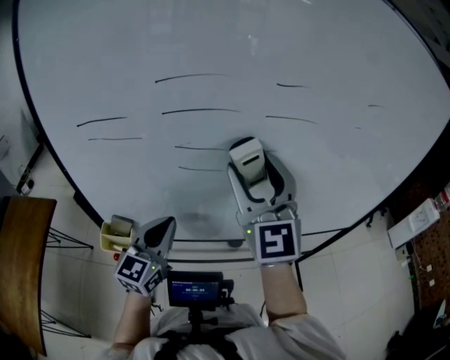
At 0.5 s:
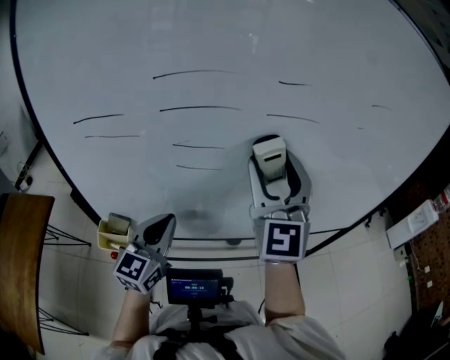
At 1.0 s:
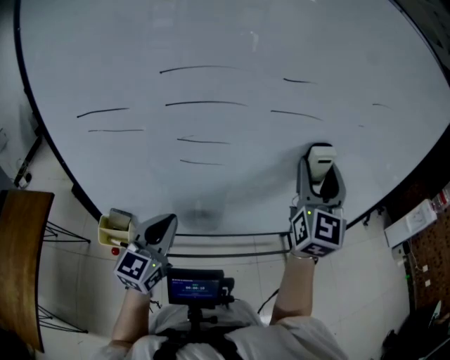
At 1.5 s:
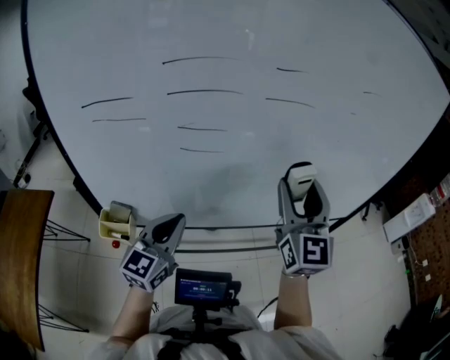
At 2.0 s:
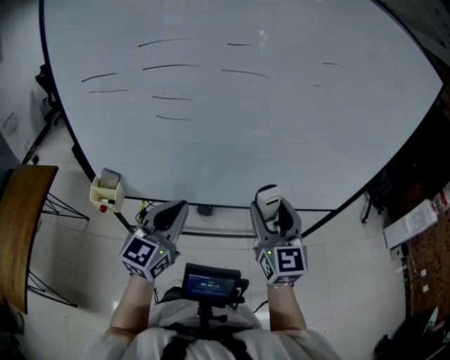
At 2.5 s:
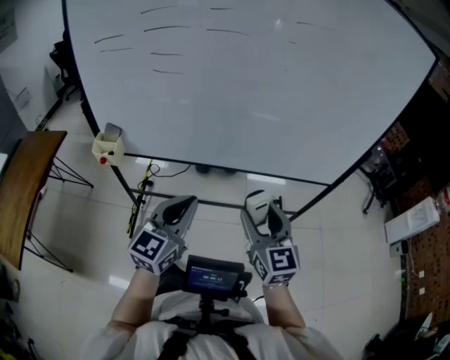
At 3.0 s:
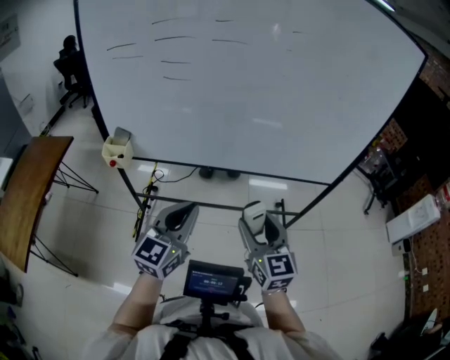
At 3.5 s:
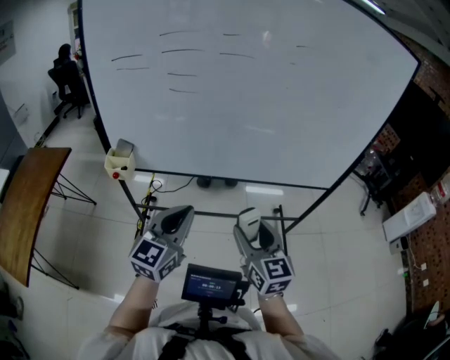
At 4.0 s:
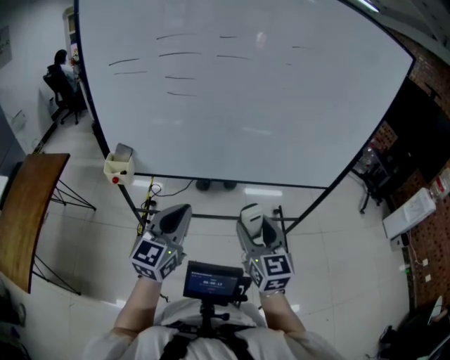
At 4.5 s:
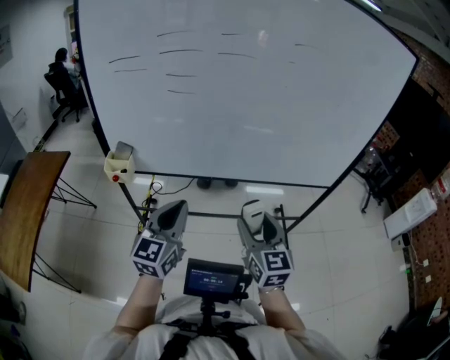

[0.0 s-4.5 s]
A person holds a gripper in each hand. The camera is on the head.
0.0 to 2.0 s: The left gripper moves to the right and backward, roughly 15 cm, while the right gripper goes about 25 cm to the right, downward and backward, and changes its angle by about 20 degrees.
2.0 to 4.5 s: The right gripper heads backward and downward, covering approximately 15 cm; the left gripper moves backward, some 15 cm.

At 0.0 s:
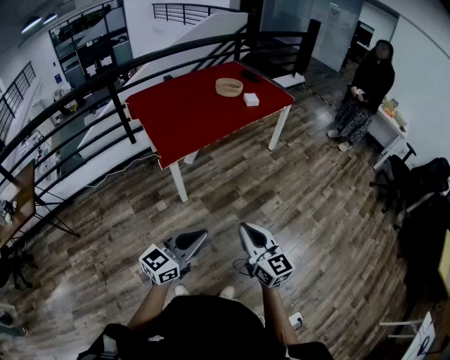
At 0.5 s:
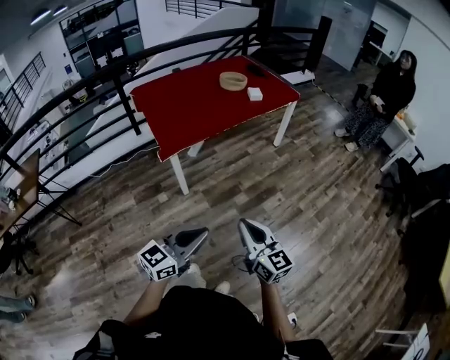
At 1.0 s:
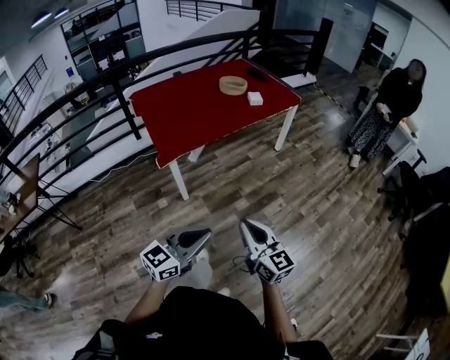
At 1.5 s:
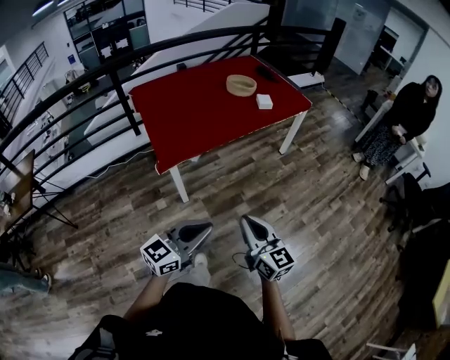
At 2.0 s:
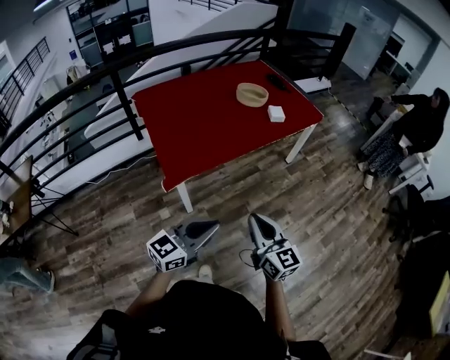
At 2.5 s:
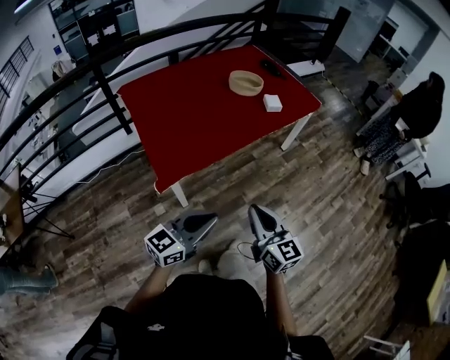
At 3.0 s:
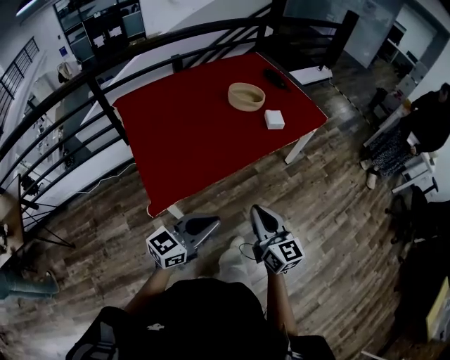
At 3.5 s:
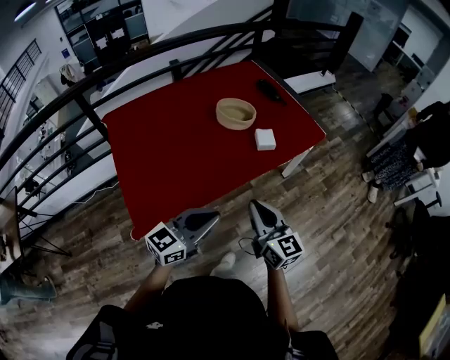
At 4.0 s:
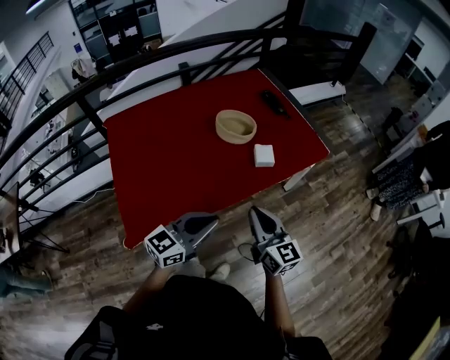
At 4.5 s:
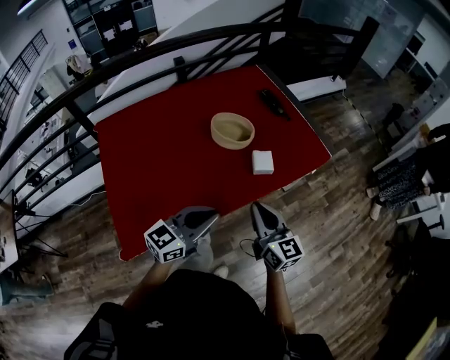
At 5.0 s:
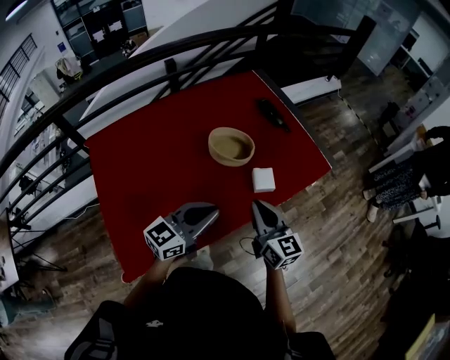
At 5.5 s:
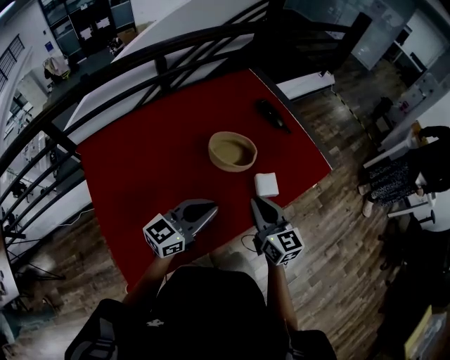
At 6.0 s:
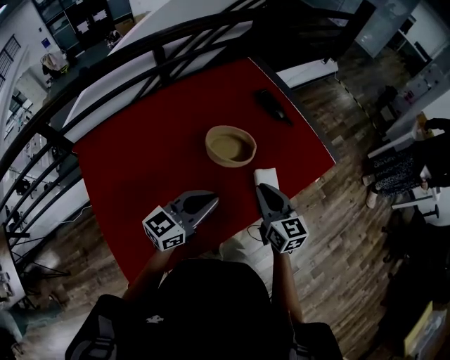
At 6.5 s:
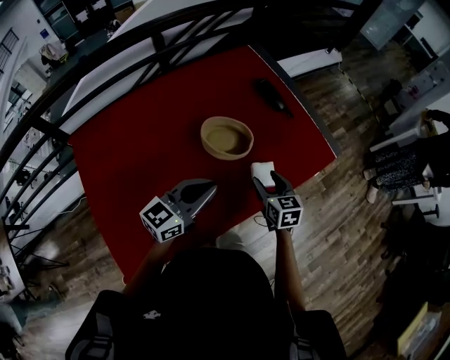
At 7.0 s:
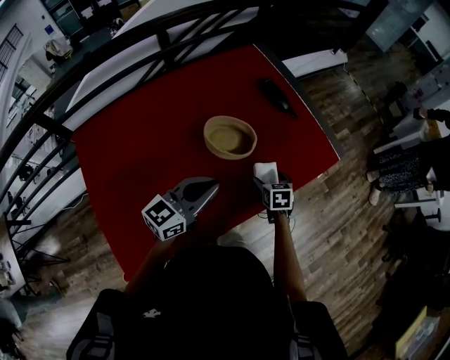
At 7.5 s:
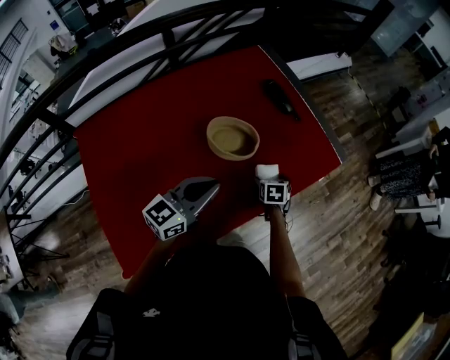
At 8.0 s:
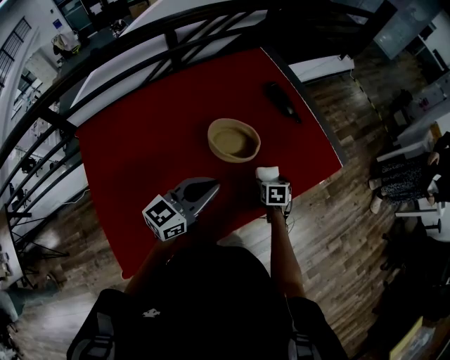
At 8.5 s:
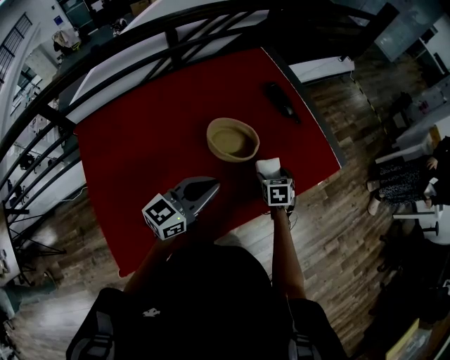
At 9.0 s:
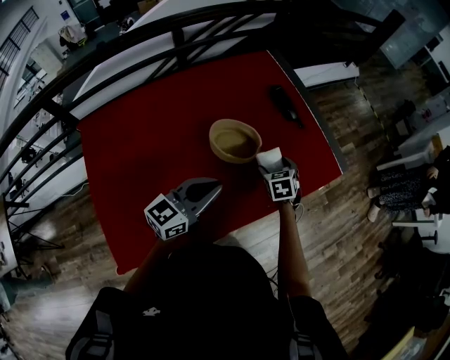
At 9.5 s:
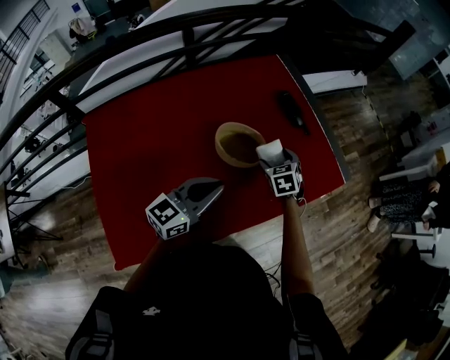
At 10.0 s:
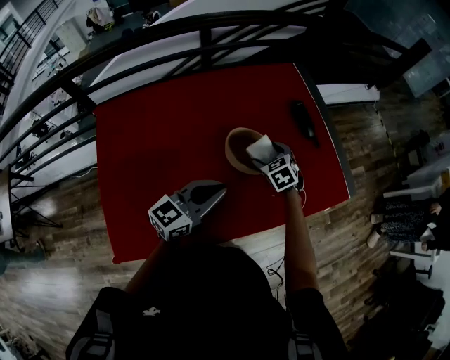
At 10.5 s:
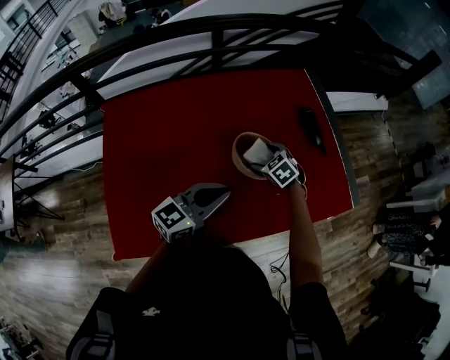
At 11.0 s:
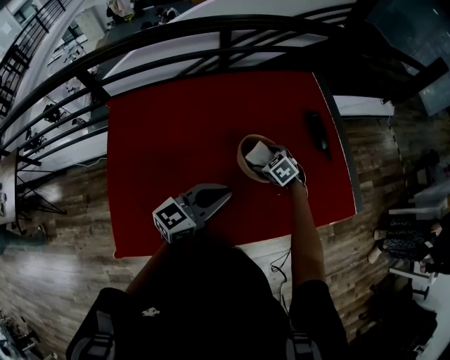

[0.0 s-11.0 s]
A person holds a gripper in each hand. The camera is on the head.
0.0 to 2.0 s: Both grippers move forward, roughly 30 cm.
2.0 to 3.5 s: The two grippers go about 35 cm forward.
3.5 to 5.5 s: The grippers both shift forward by about 30 cm.
5.5 to 7.5 s: The right gripper shifts approximately 30 cm downward and forward, angles its fingers downward, by some 50 degrees, and opens. The left gripper goes approximately 10 cm forward.
7.5 to 9.0 s: The right gripper travels upward by roughly 10 cm, and swivels about 20 degrees.
9.0 to 11.0 s: The right gripper ends up about 15 cm from where it was, and rotates some 40 degrees.

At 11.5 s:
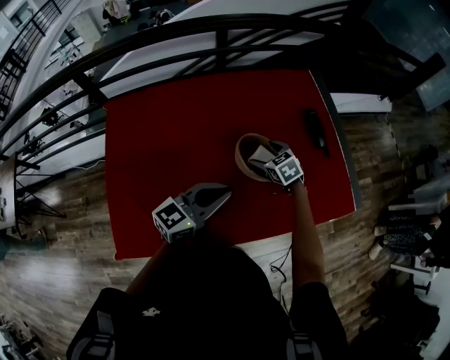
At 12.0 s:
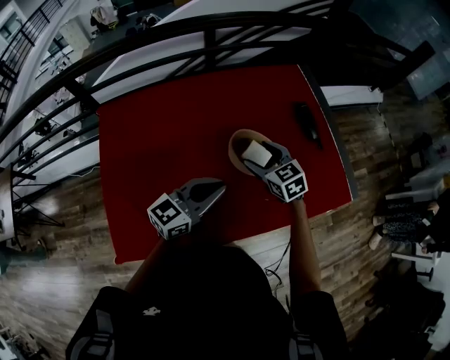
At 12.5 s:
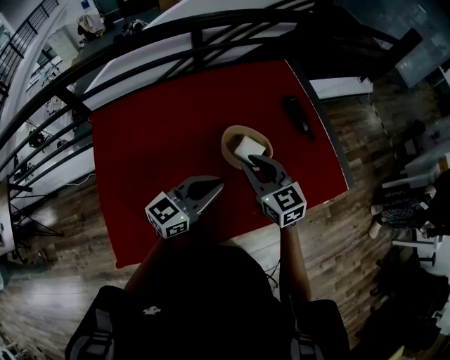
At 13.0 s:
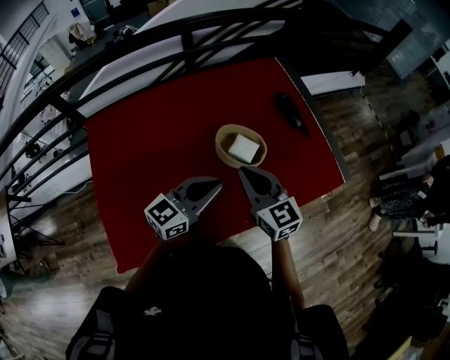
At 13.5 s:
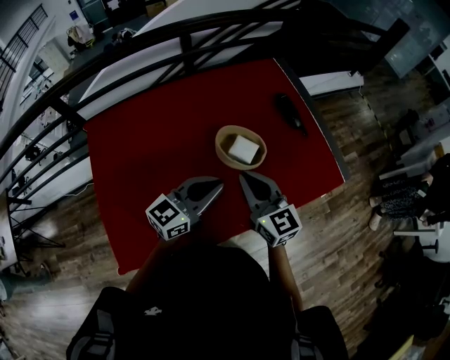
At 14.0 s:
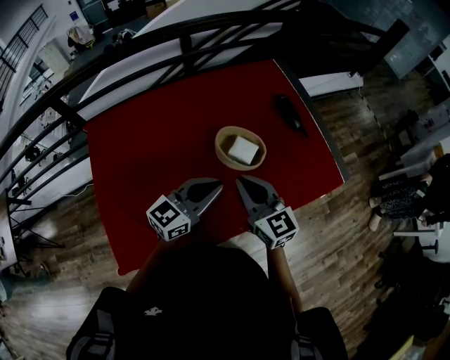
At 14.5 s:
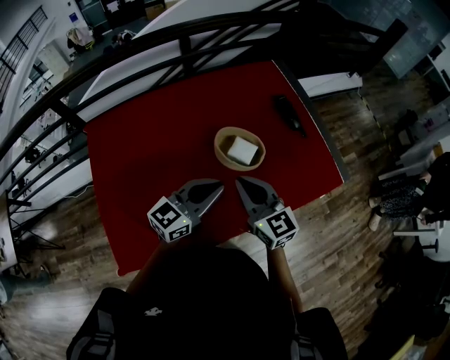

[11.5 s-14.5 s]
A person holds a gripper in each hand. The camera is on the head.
11.5 to 13.0 s: The right gripper shifts approximately 25 cm upward and backward, tips its fingers upward by approximately 40 degrees, and closes.
13.0 to 14.5 s: The grippers make only small movements.

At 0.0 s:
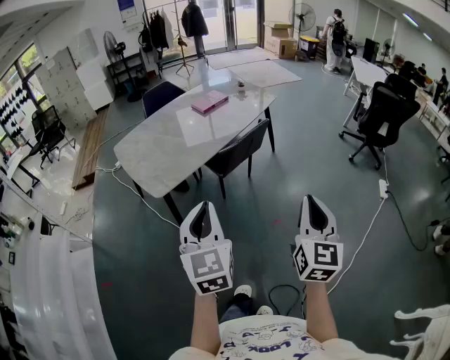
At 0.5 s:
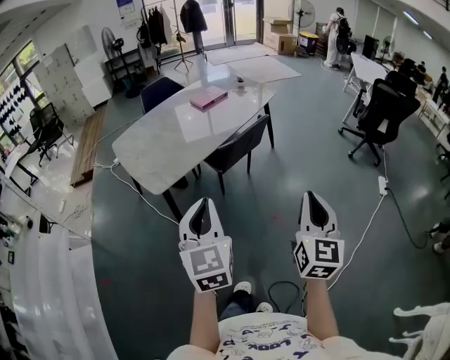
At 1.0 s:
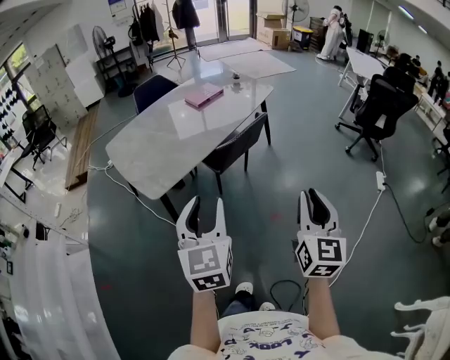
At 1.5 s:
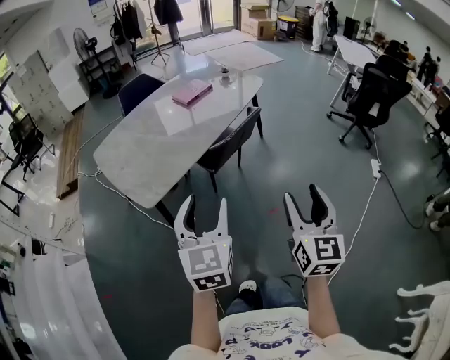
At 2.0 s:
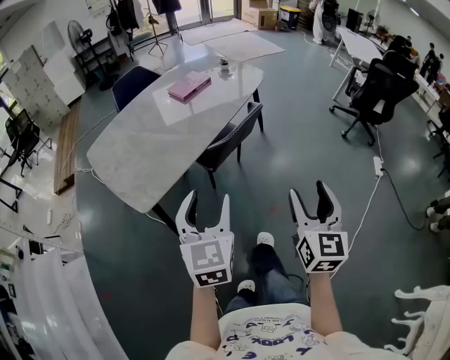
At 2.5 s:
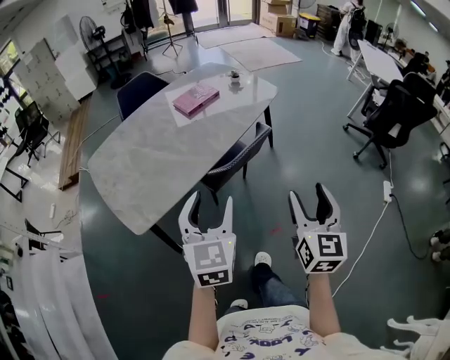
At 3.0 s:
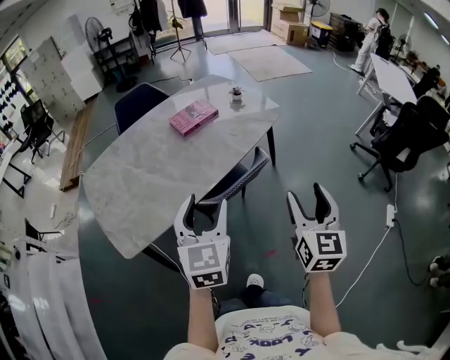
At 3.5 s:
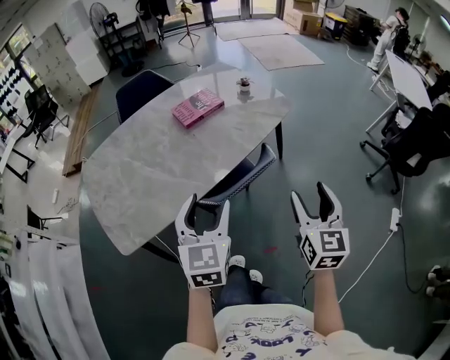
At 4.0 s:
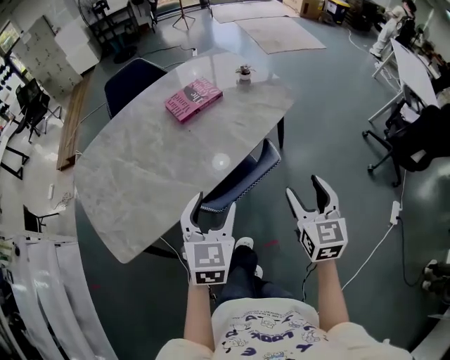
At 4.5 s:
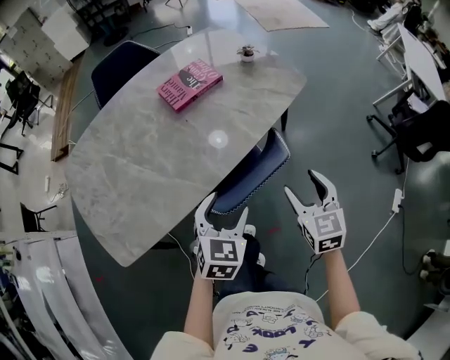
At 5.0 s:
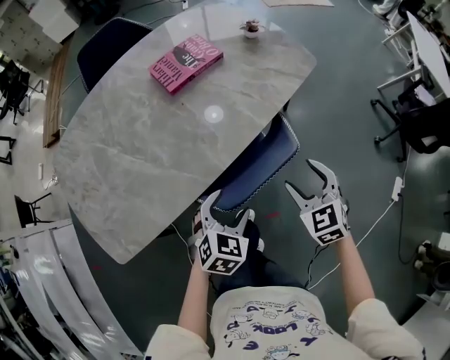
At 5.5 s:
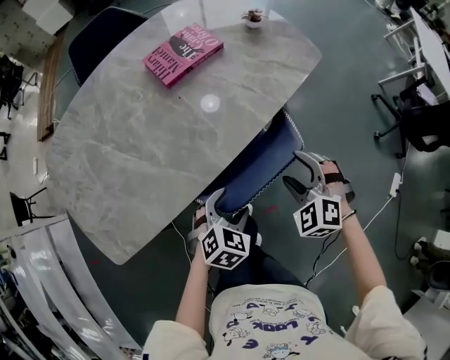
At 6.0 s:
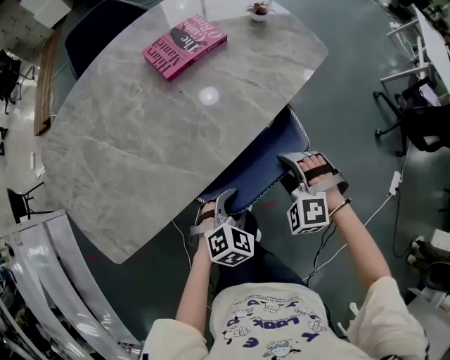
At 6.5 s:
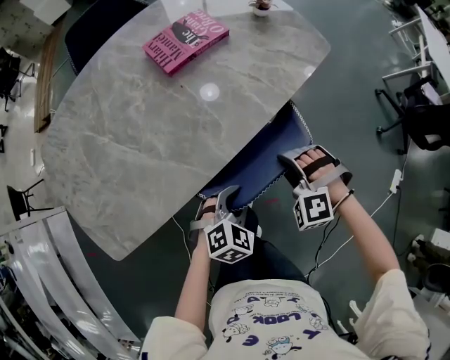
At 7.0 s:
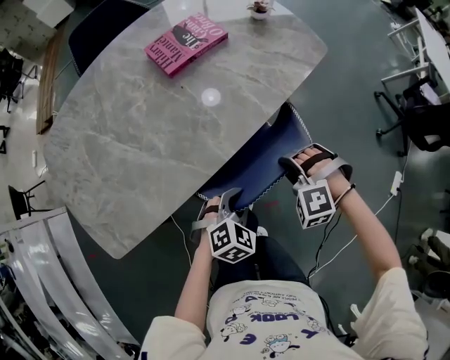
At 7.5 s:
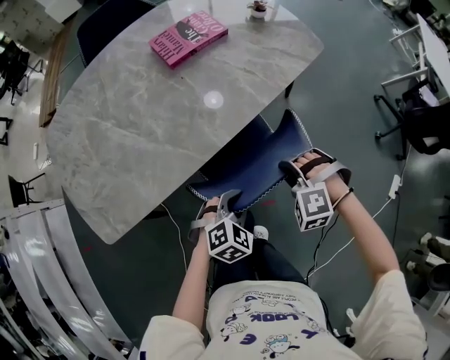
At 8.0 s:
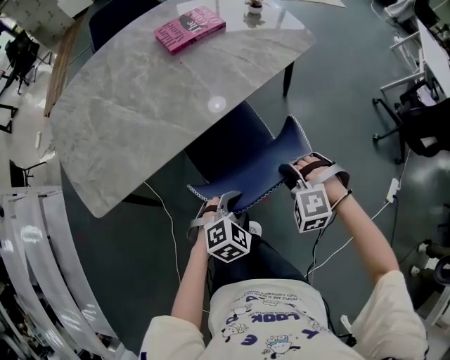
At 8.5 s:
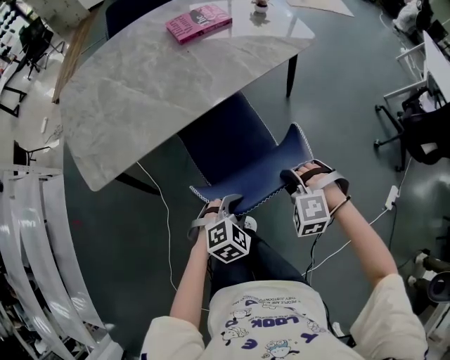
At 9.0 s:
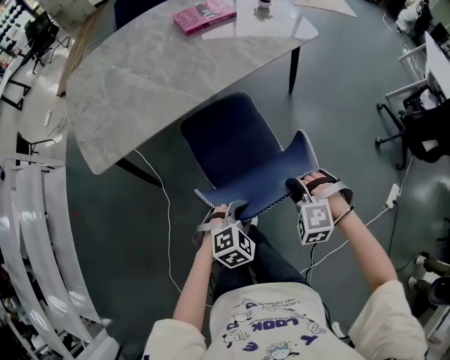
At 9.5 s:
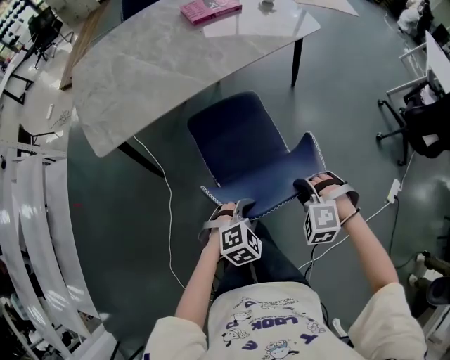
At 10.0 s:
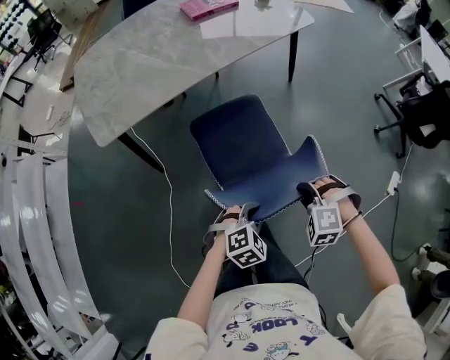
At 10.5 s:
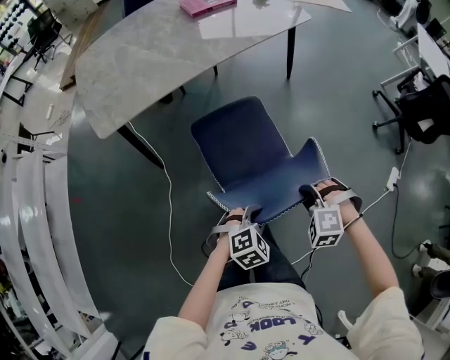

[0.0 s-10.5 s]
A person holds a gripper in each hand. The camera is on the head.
0.0 to 2.0 s: The two grippers go roughly 15 cm forward. The left gripper opens its fingers. Meanwhile the right gripper opens.
2.0 to 4.0 s: The grippers both shift forward by some 40 cm. The right gripper changes its angle by some 20 degrees.
4.0 to 6.5 s: The right gripper shifts roughly 25 cm downward and to the left, rolls counterclockwise, seen from behind, by about 80 degrees, and closes up. Meanwhile the left gripper moves downward, roughly 25 cm, swivels some 40 degrees, and closes up.
6.5 to 8.5 s: Both grippers travel together backward and to the right, some 25 cm.
8.5 to 10.5 s: Both grippers move backward and to the right, roughly 25 cm.
